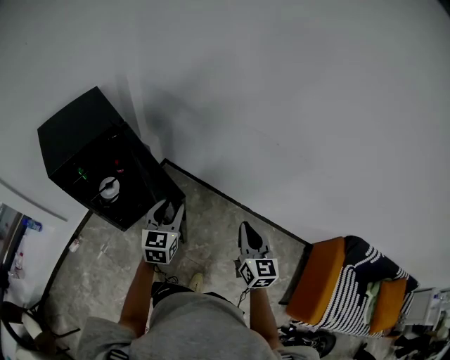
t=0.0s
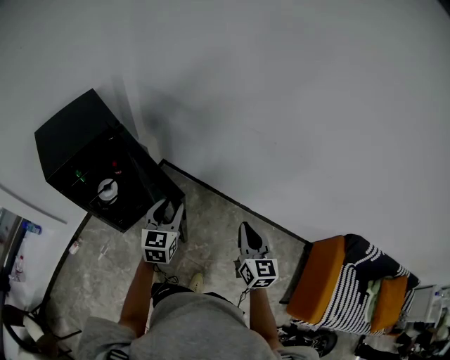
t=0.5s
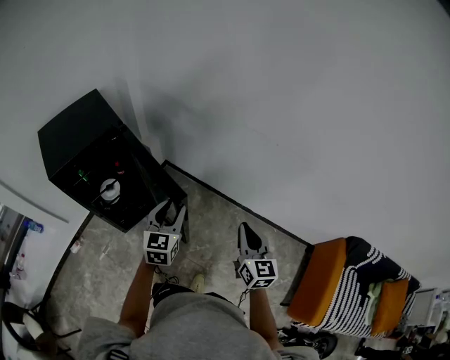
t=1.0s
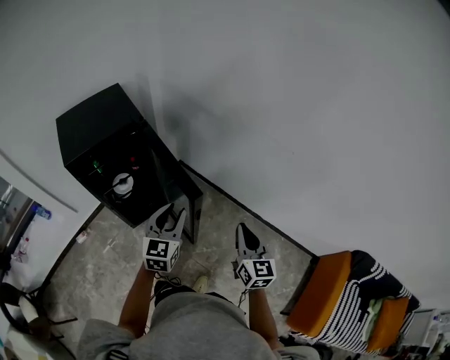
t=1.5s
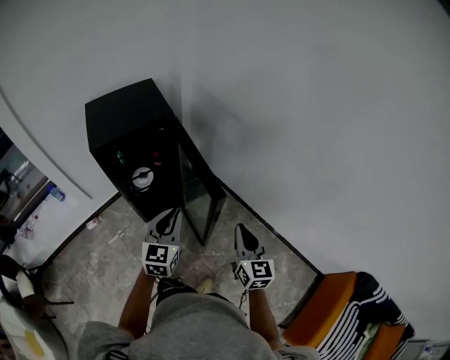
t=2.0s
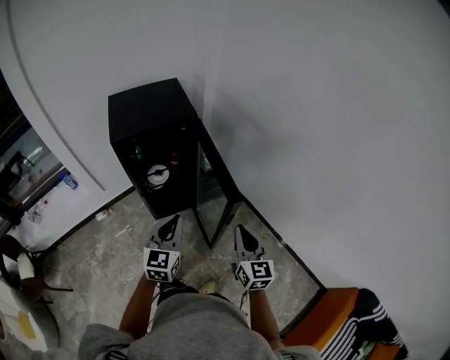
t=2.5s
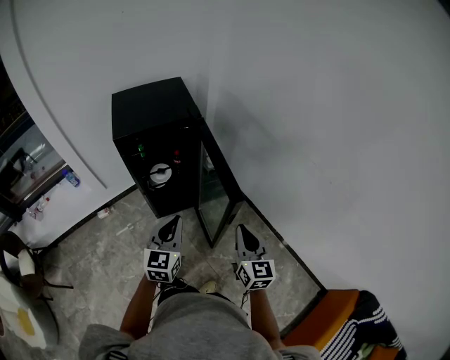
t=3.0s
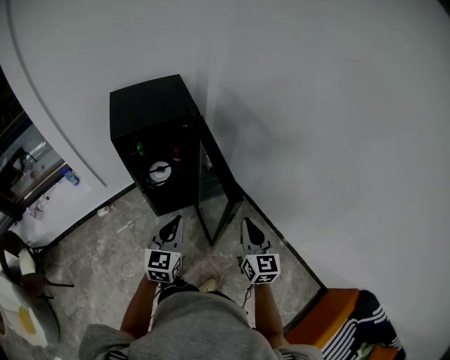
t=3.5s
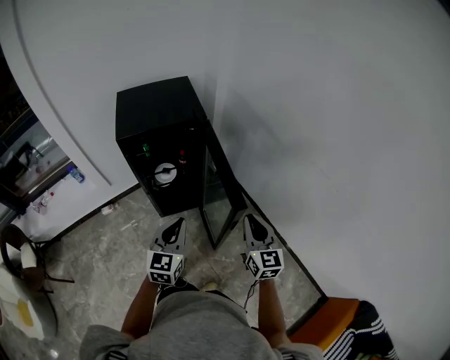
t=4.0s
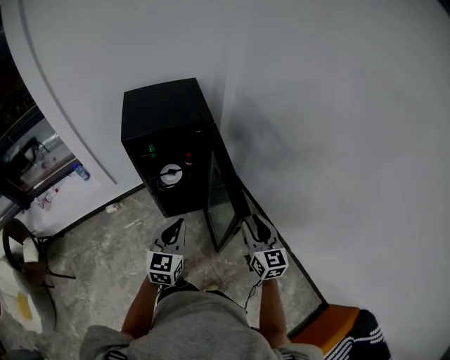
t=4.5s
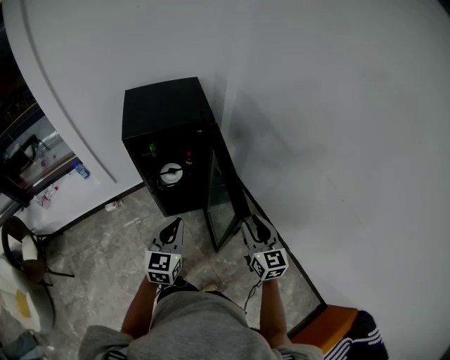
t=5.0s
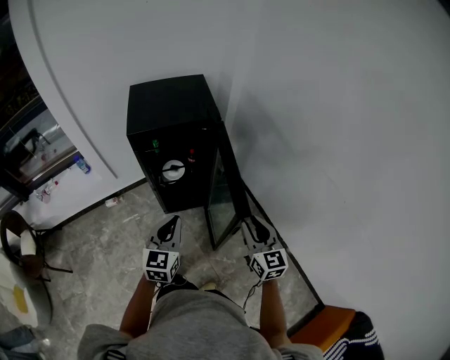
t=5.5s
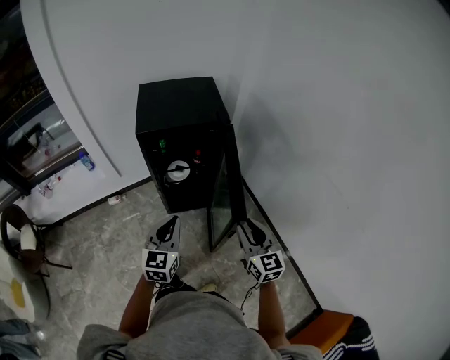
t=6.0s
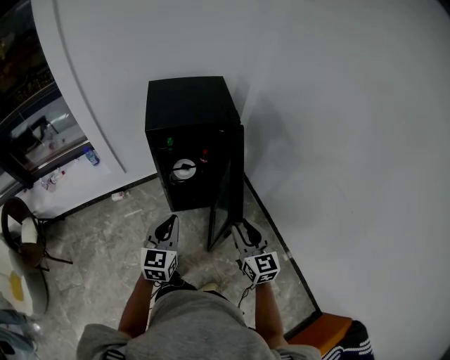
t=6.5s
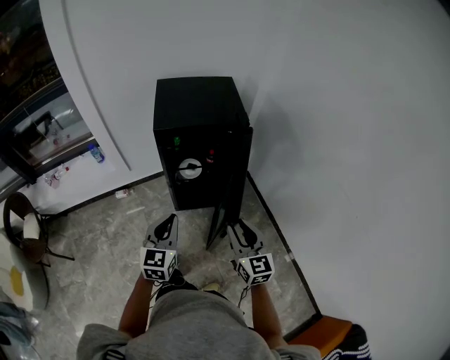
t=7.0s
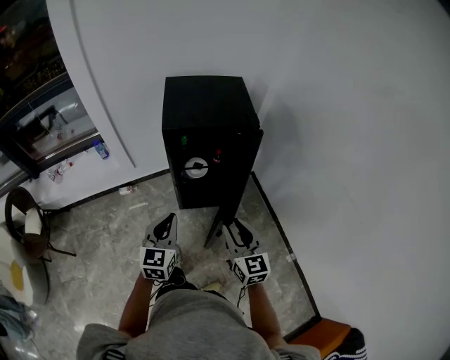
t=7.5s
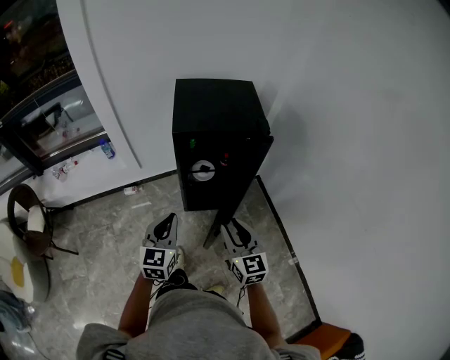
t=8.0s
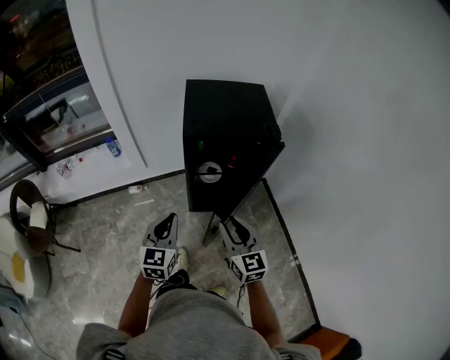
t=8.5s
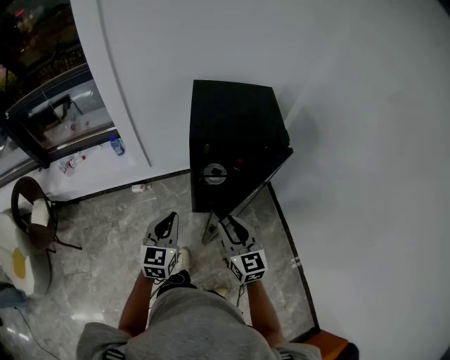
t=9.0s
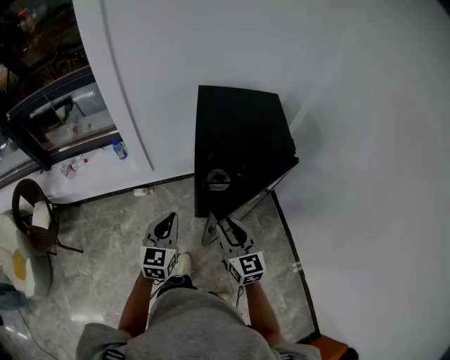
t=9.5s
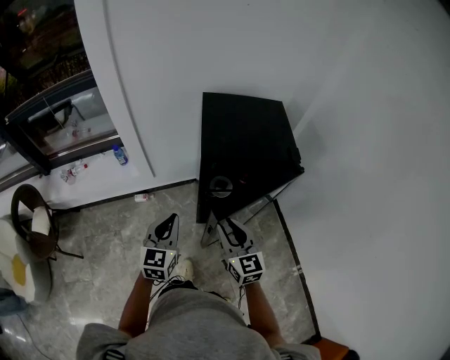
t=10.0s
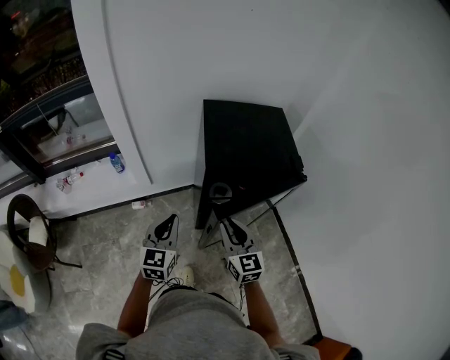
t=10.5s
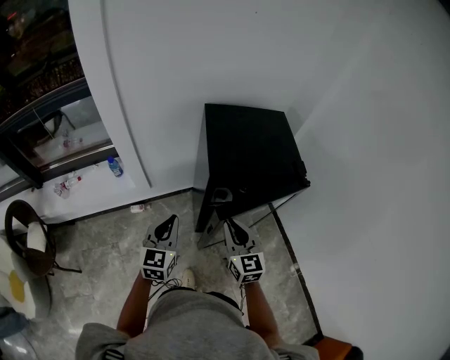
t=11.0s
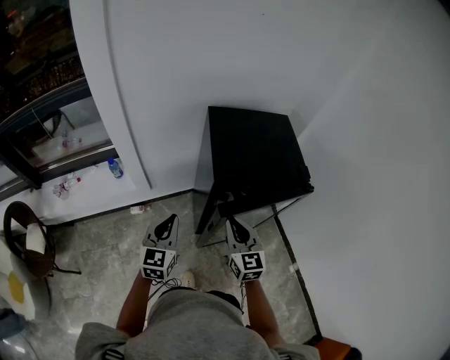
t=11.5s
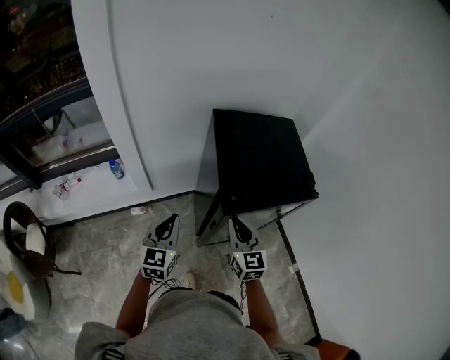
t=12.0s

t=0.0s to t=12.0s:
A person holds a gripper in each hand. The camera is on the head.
t=0.0s to t=2.0s: The right gripper moves to the left, about 10 cm. Meanwhile the left gripper is displaced to the left and backward by roughly 10 cm, and closes.
t=2.0s to t=4.0s: The right gripper moves forward, about 5 cm.
t=4.0s to t=6.0s: Both grippers travel together to the left, approximately 5 cm. The right gripper opens its fingers.
t=6.0s to t=8.0s: The grippers both shift to the left by approximately 15 cm.
t=8.0s to t=10.0s: Both grippers move forward and to the left, roughly 15 cm.
t=10.0s to t=12.0s: The right gripper travels forward by roughly 10 cm. The left gripper travels forward and to the left by some 10 cm.

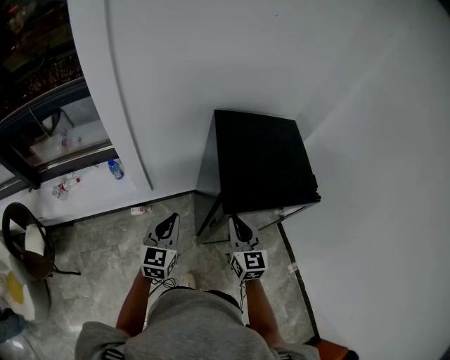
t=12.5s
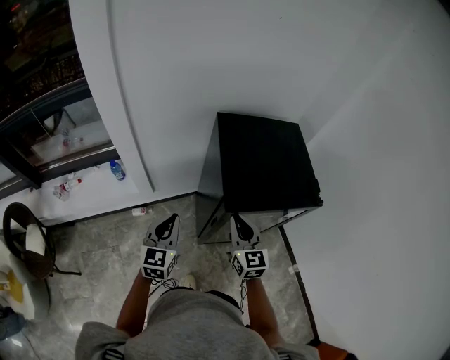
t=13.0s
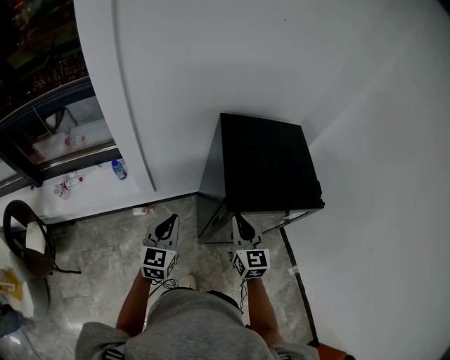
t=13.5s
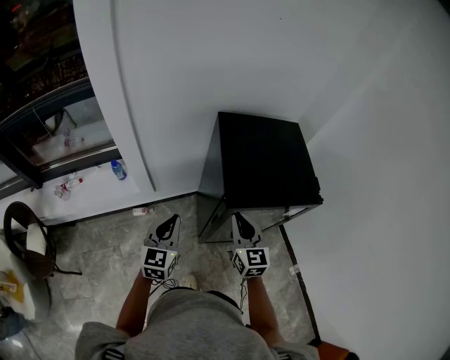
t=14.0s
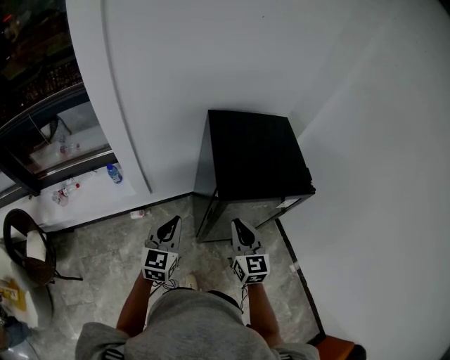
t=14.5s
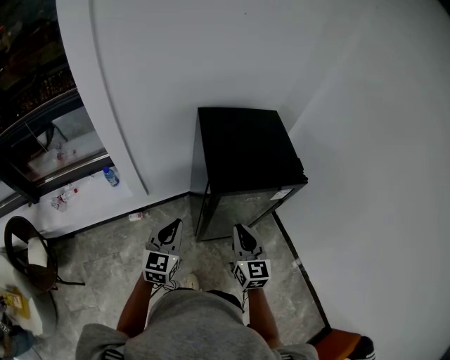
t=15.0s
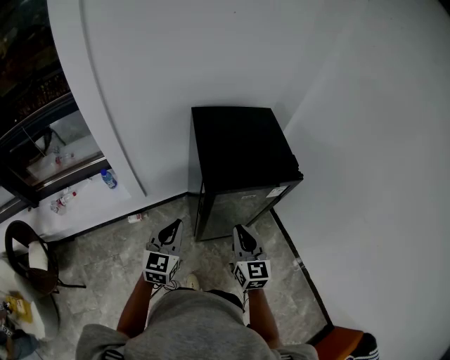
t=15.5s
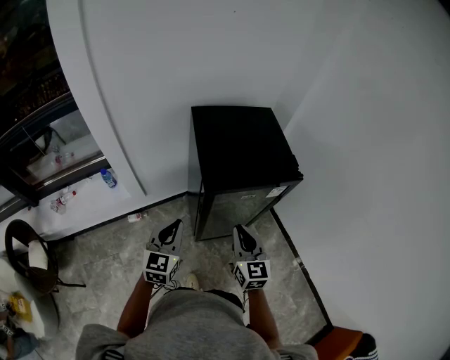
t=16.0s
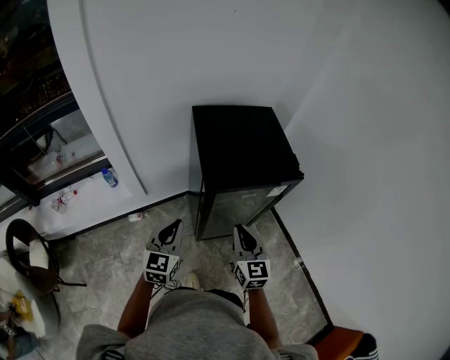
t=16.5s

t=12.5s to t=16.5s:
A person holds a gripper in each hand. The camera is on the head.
t=12.5s to t=14.5s: The grippers stay close to where they were, moving slightly.
t=14.5s to t=16.5s: The right gripper ends up roughly 5 cm from where it was, while the left gripper moves roughly 5 cm.

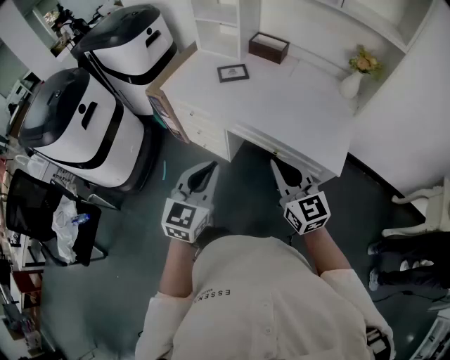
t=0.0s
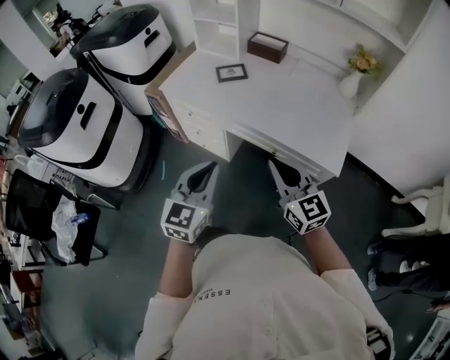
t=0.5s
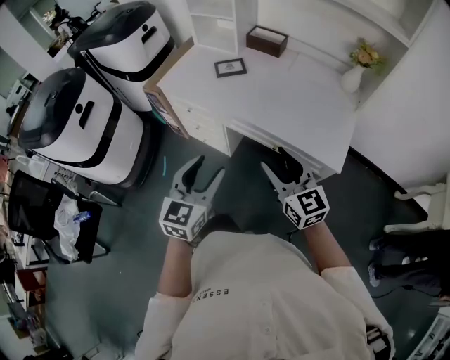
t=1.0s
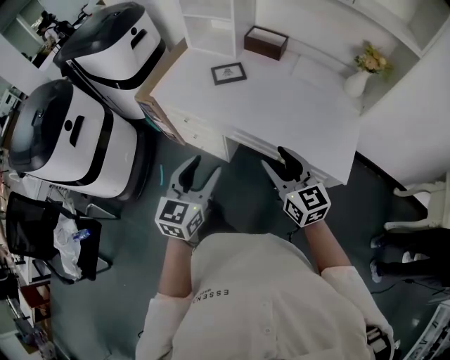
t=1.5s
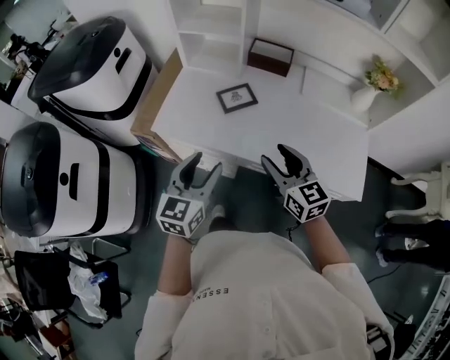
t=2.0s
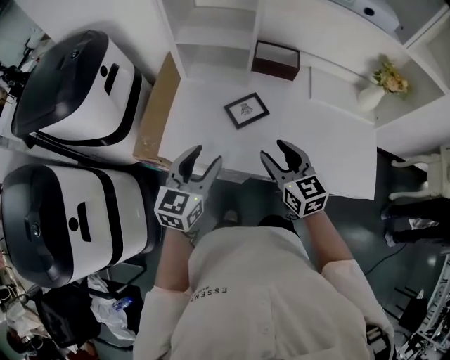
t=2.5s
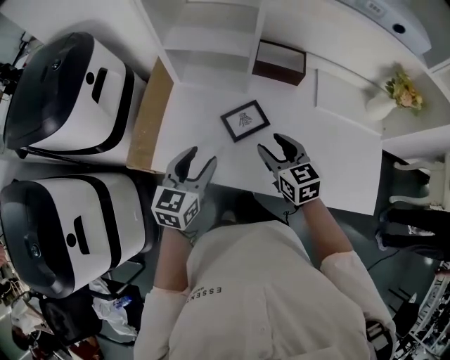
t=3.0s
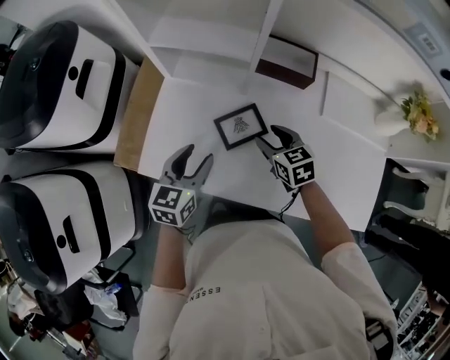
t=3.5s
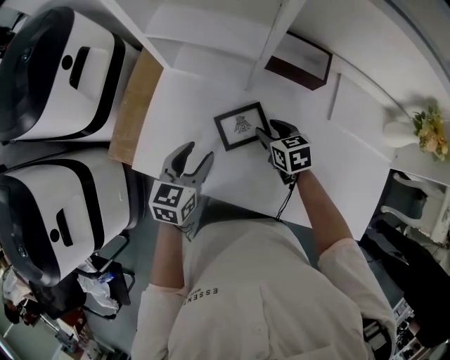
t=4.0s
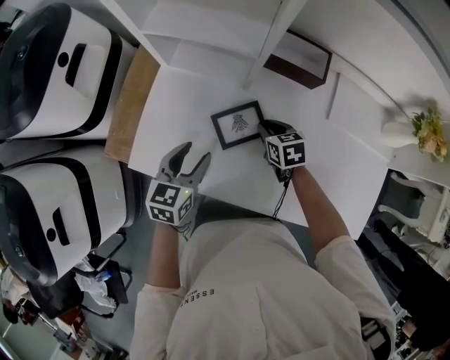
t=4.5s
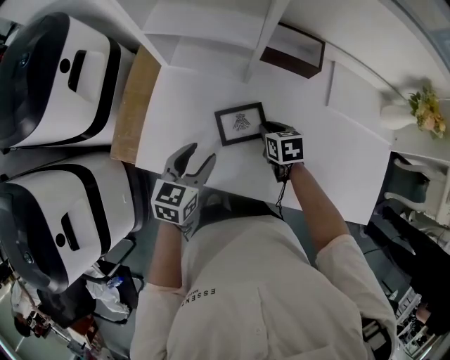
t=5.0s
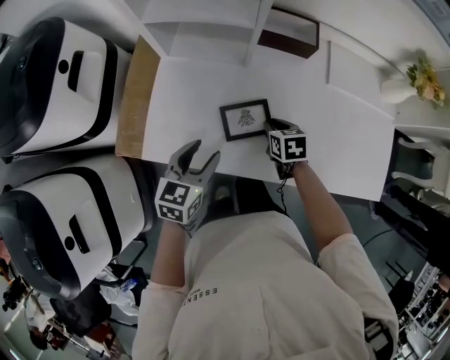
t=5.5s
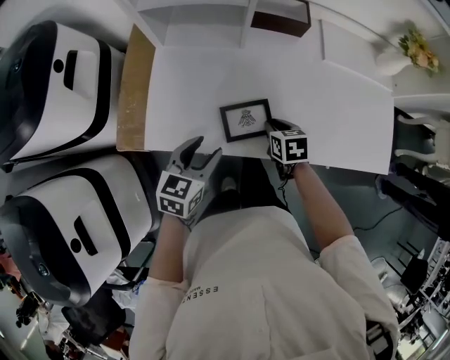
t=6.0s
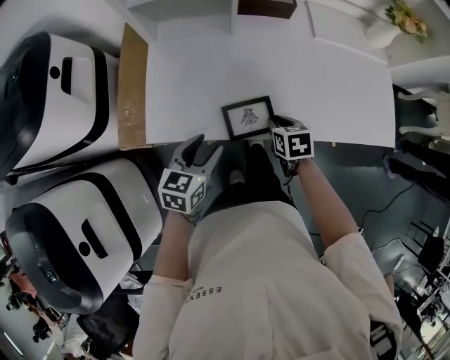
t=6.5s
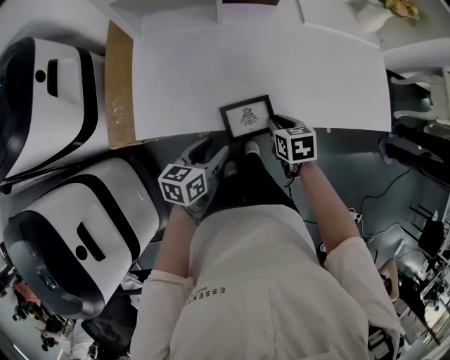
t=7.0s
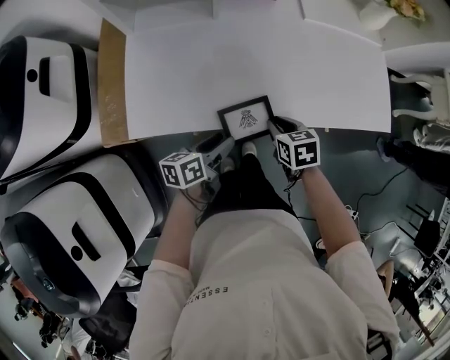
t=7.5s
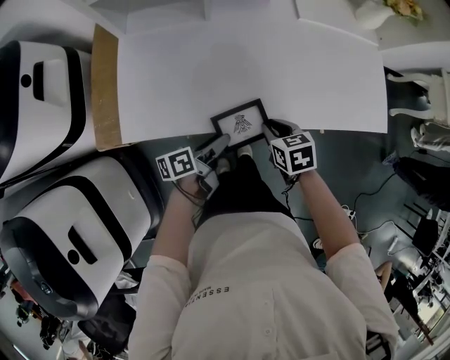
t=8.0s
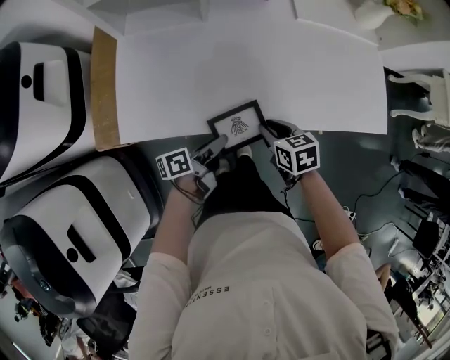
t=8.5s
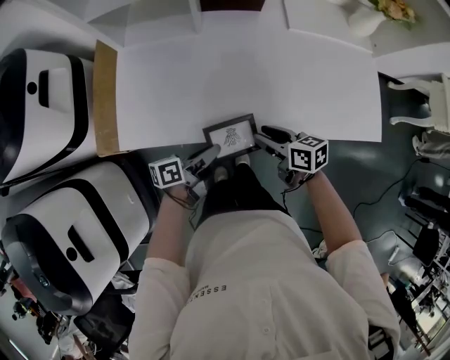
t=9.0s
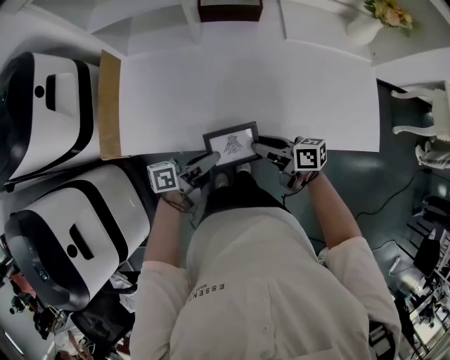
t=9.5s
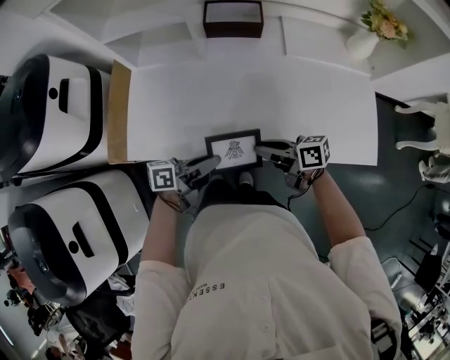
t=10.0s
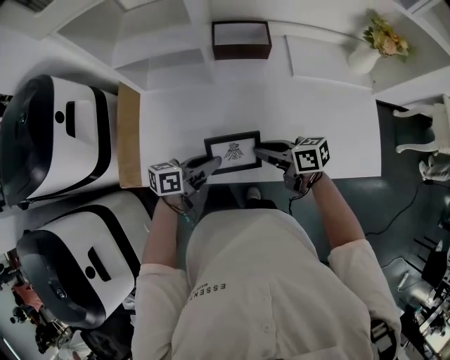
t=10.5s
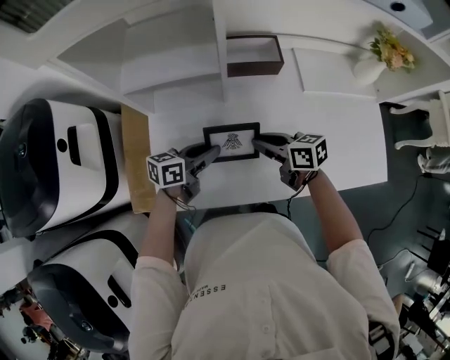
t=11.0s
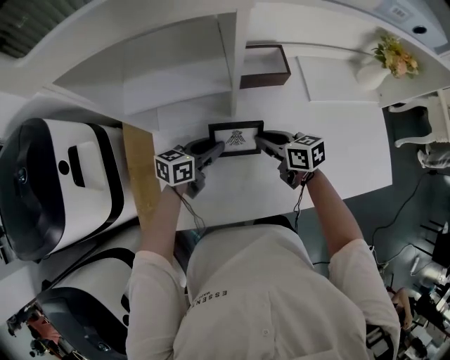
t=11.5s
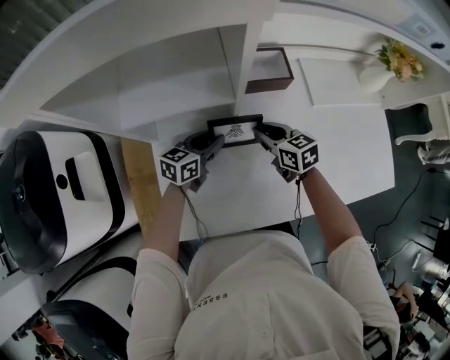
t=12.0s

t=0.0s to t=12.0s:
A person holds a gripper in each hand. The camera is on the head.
t=0.0s to t=2.0s: The left gripper heads forward and to the left, covering roughly 30 cm, and opens its fingers. The right gripper heads forward, covering approximately 25 cm, and opens.
t=2.0s to t=4.0s: Both grippers travel together forward and downward, some 35 cm. The right gripper tilts its fingers some 30 degrees downward. The left gripper swivels approximately 20 degrees.
t=4.0s to t=6.0s: The grippers both shift backward by roughly 15 cm. The right gripper swivels some 30 degrees, and closes.
t=6.0s to t=8.0s: The right gripper travels backward and to the right by about 10 cm. The left gripper travels downward and to the right by approximately 15 cm, and twists some 50 degrees counterclockwise, seen from behind.
t=8.0s to t=10.0s: Both grippers move upward, roughly 10 cm. The right gripper tips its fingers upward by approximately 40 degrees. Meanwhile the left gripper closes its fingers.
t=10.0s to t=12.0s: The right gripper moves some 30 cm, and swivels about 40 degrees. Meanwhile the left gripper moves about 35 cm, and turns by approximately 40 degrees.
